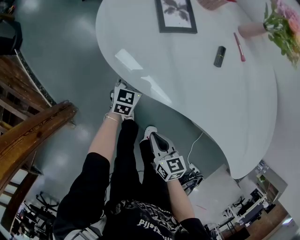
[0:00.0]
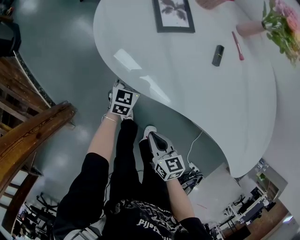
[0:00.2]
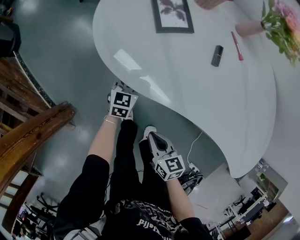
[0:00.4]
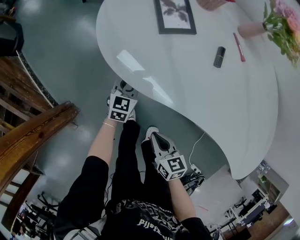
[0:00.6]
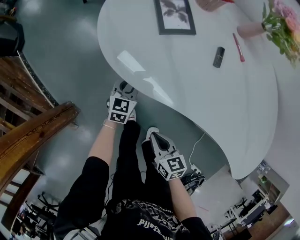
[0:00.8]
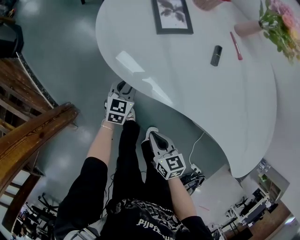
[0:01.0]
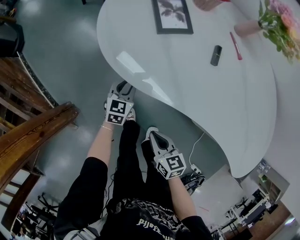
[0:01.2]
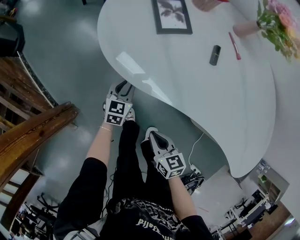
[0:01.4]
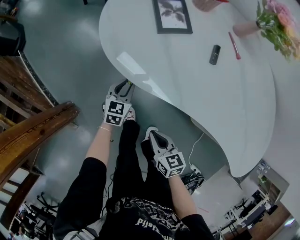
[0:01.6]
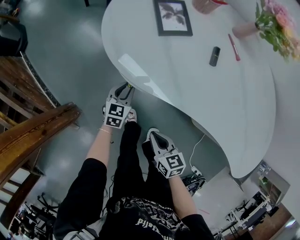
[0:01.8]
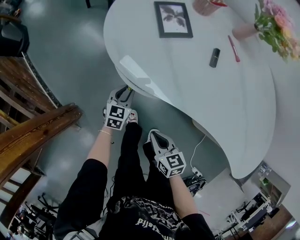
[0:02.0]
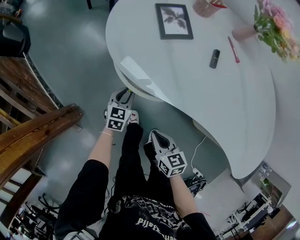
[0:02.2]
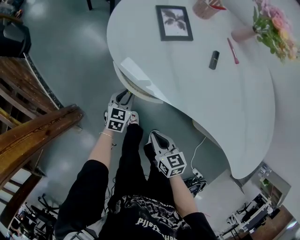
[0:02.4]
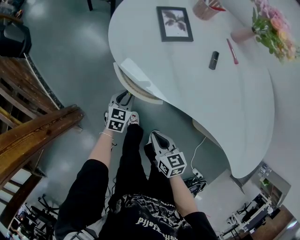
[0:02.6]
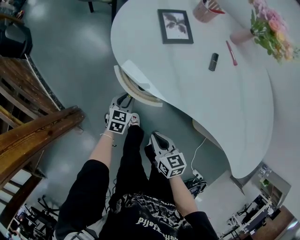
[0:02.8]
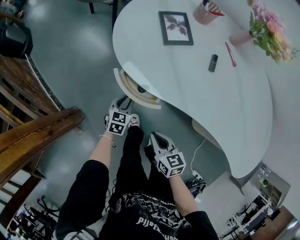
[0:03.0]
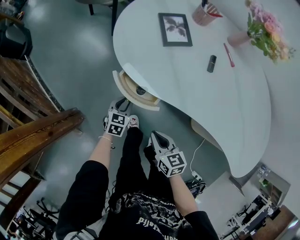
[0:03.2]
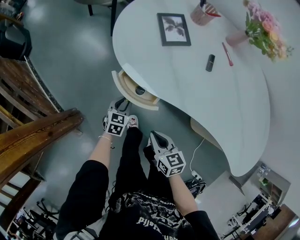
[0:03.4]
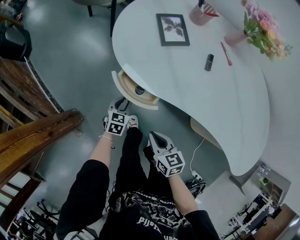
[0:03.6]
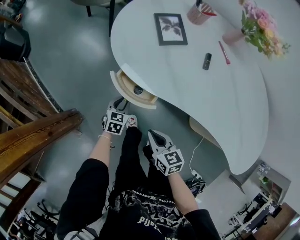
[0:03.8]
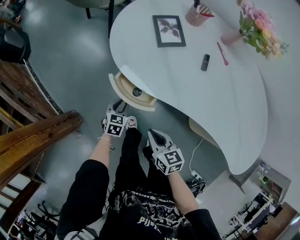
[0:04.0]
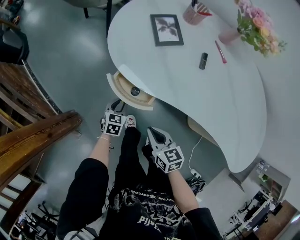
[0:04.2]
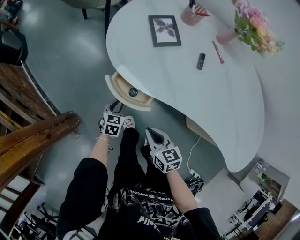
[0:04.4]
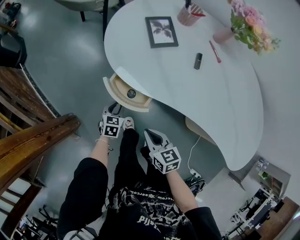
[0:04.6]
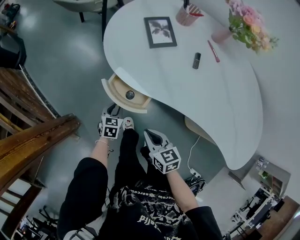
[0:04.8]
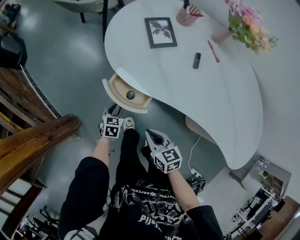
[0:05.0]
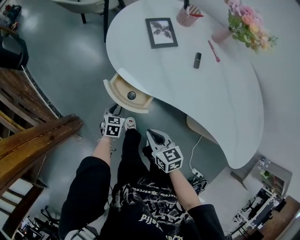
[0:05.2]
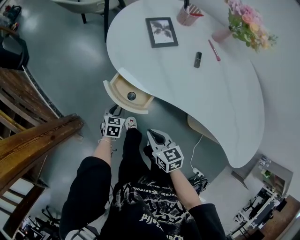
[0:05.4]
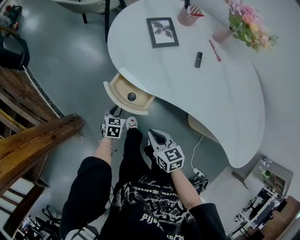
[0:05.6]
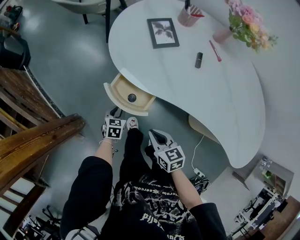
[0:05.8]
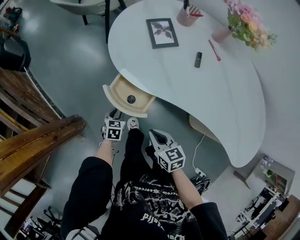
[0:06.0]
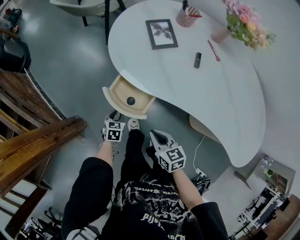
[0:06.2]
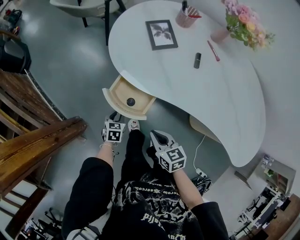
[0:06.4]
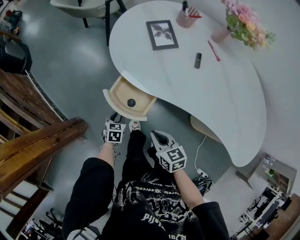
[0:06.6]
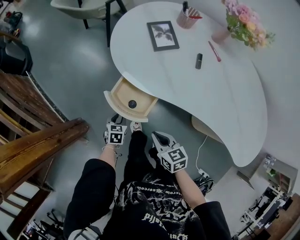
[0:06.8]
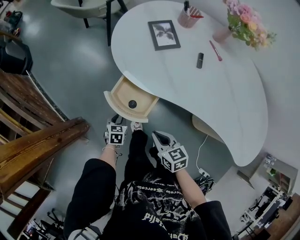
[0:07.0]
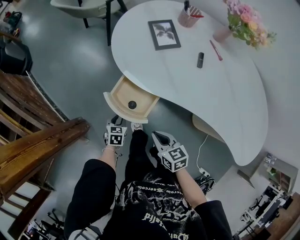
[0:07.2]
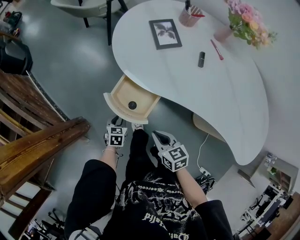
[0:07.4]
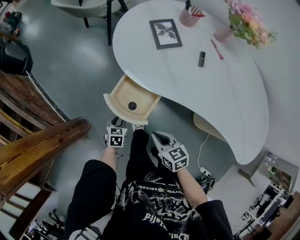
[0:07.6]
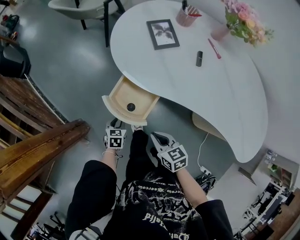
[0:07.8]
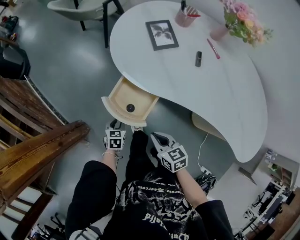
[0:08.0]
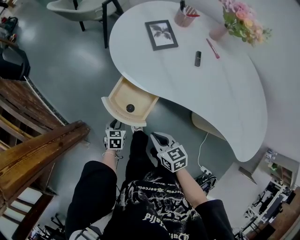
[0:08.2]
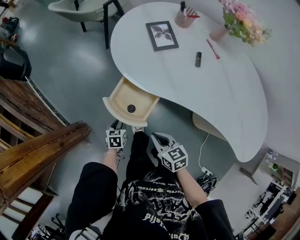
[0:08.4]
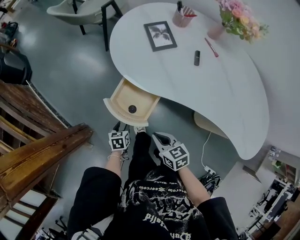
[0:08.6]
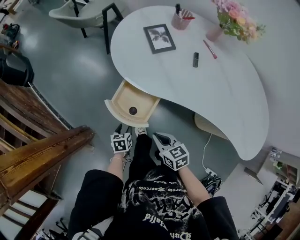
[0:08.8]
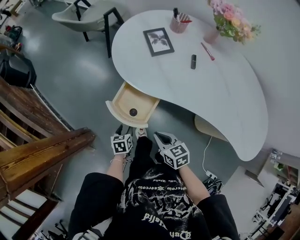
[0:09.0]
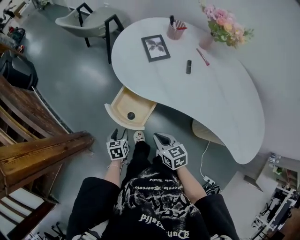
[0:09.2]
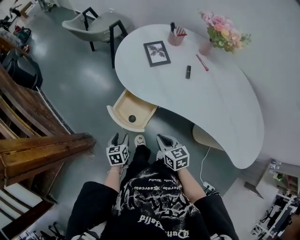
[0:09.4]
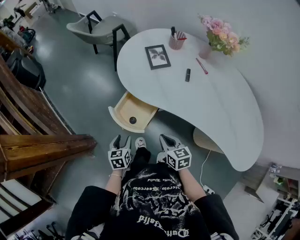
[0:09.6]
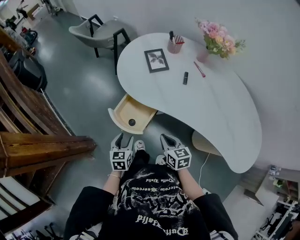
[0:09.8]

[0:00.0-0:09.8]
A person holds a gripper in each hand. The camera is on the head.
0:00.0 to 0:01.4: The left gripper shifts by roughly 5 cm.
0:01.4 to 0:02.8: The left gripper changes place by roughly 5 cm.
0:02.8 to 0:04.2: The grippers stay close to where they were, moving slightly.
0:04.2 to 0:05.6: The grippers stay close to where they were, moving slightly.
0:05.6 to 0:07.0: The grippers stay close to where they were, moving slightly.
0:07.0 to 0:08.4: The grippers stay close to where they were, moving slightly.
0:08.4 to 0:09.8: The left gripper travels upward by some 20 cm, and opens its fingers; the right gripper heads to the right and upward, covering roughly 10 cm.

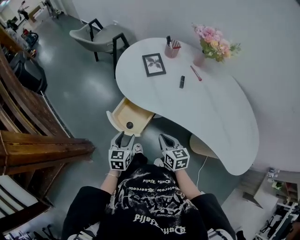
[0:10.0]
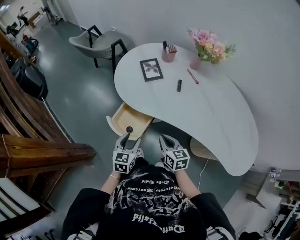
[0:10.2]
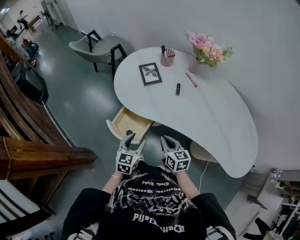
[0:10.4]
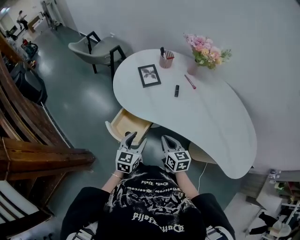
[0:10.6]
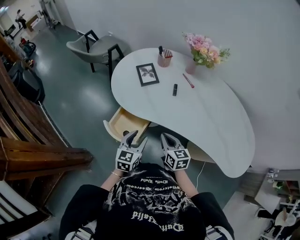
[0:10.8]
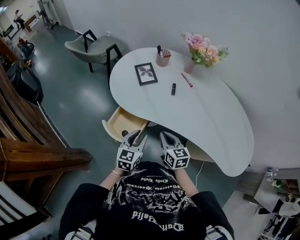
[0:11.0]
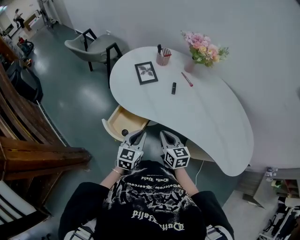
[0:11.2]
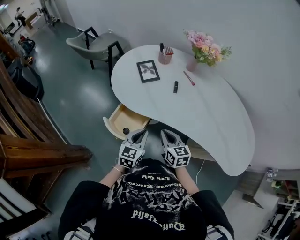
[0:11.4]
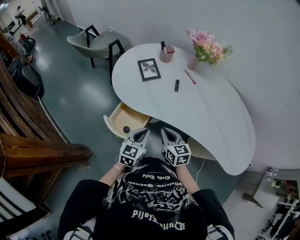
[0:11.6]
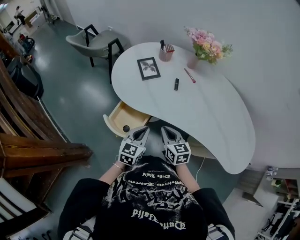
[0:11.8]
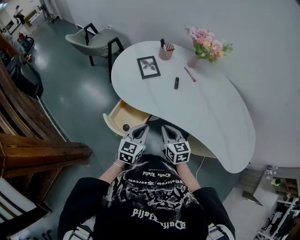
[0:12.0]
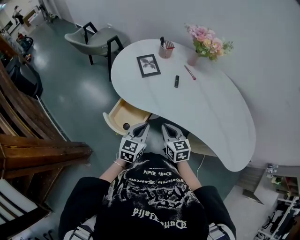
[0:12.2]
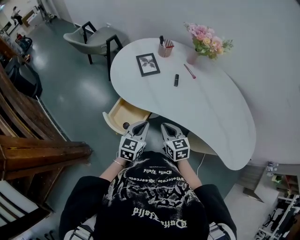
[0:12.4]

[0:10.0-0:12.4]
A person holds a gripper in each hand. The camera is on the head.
0:10.0 to 0:11.2: The right gripper shifts by about 5 cm. Meanwhile the left gripper shifts approximately 10 cm to the right and upward, and closes its fingers.
0:11.2 to 0:12.4: The grippers move only a little.

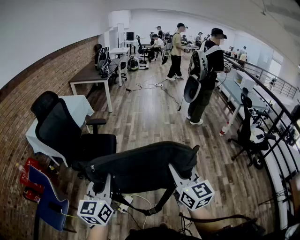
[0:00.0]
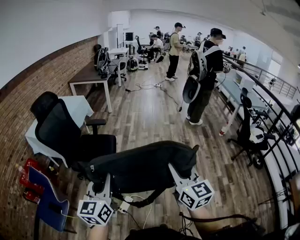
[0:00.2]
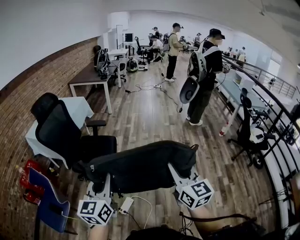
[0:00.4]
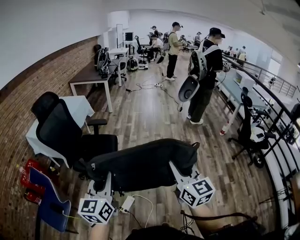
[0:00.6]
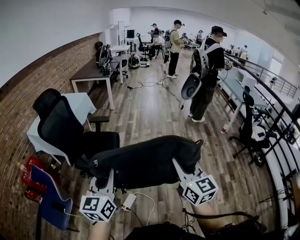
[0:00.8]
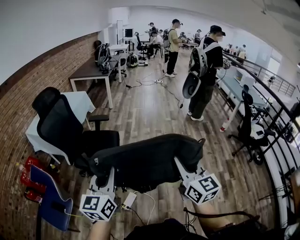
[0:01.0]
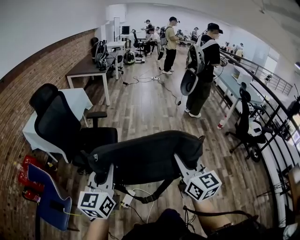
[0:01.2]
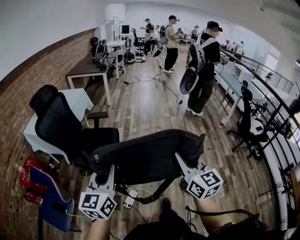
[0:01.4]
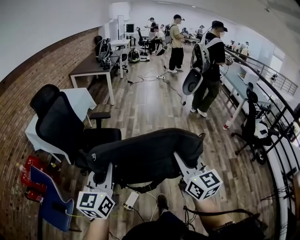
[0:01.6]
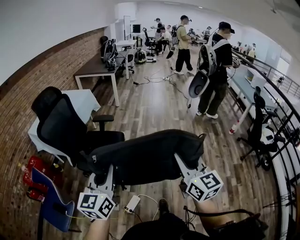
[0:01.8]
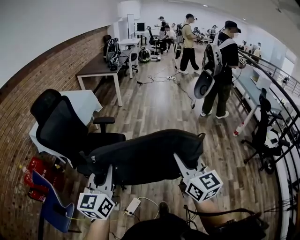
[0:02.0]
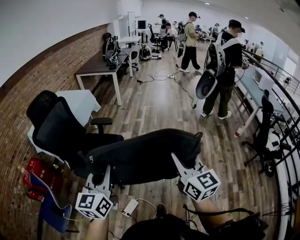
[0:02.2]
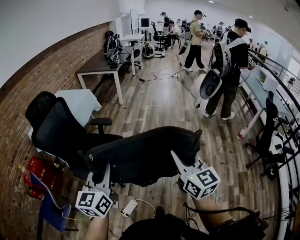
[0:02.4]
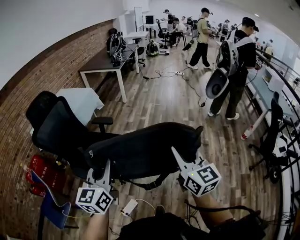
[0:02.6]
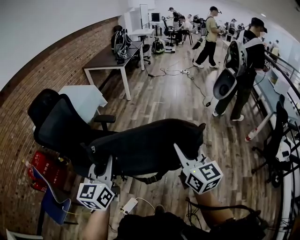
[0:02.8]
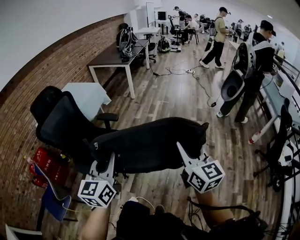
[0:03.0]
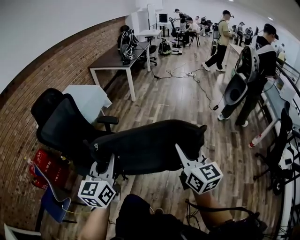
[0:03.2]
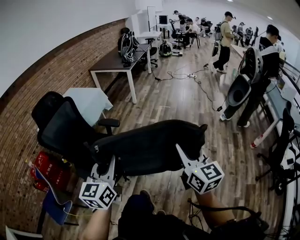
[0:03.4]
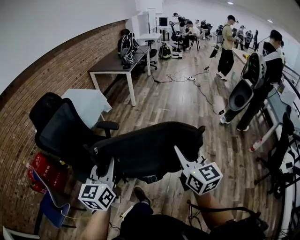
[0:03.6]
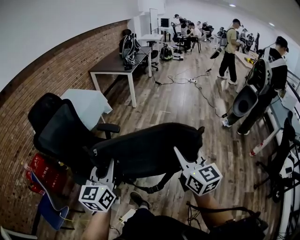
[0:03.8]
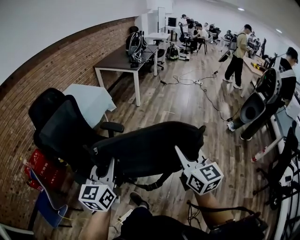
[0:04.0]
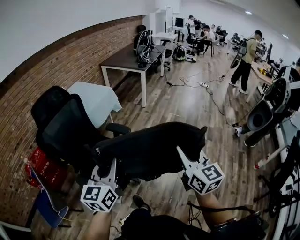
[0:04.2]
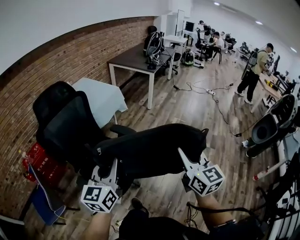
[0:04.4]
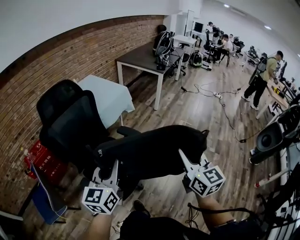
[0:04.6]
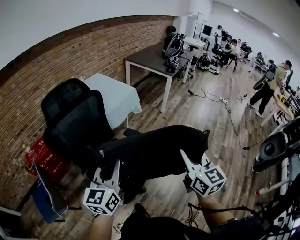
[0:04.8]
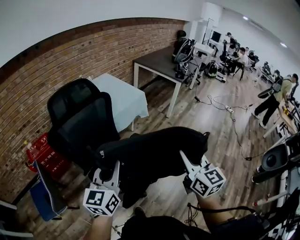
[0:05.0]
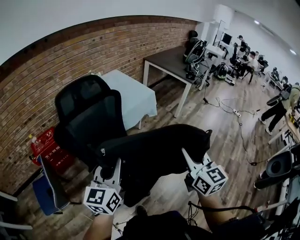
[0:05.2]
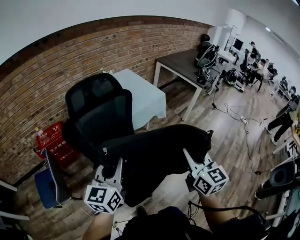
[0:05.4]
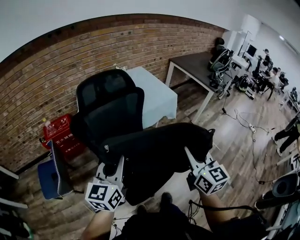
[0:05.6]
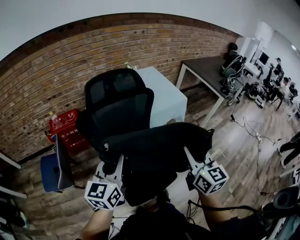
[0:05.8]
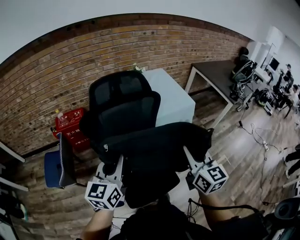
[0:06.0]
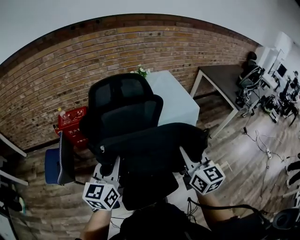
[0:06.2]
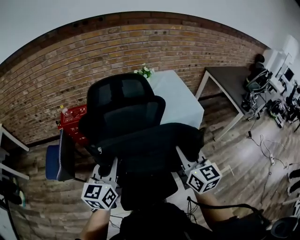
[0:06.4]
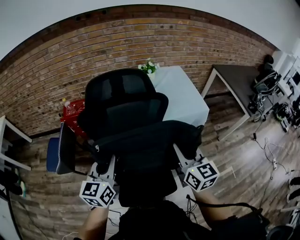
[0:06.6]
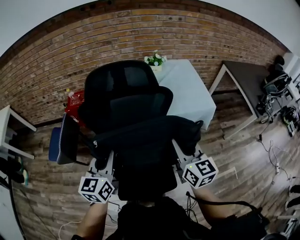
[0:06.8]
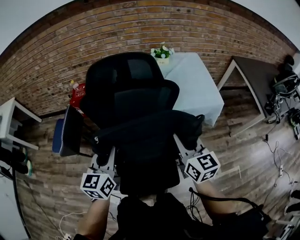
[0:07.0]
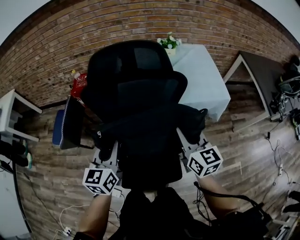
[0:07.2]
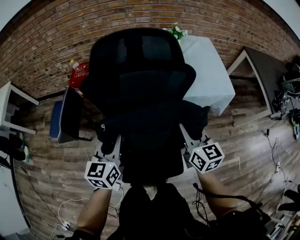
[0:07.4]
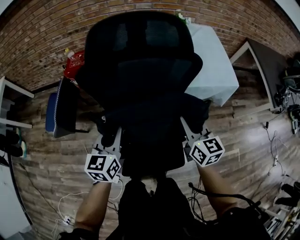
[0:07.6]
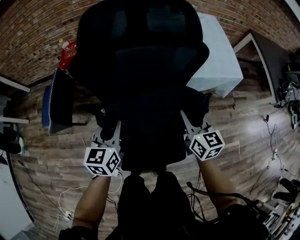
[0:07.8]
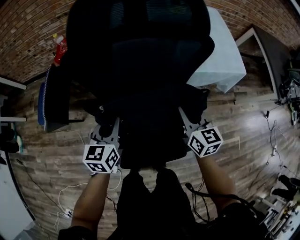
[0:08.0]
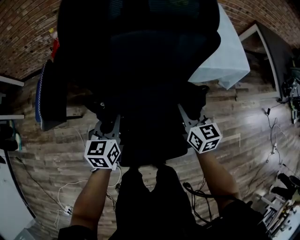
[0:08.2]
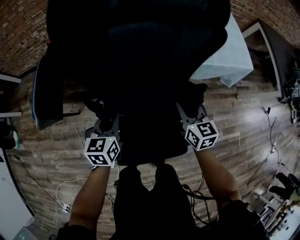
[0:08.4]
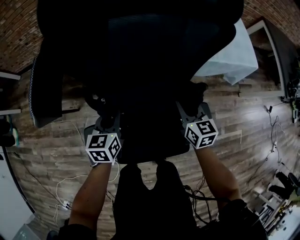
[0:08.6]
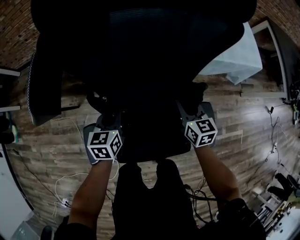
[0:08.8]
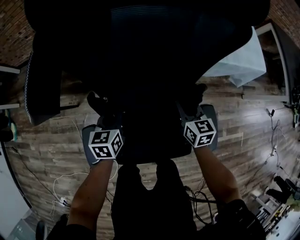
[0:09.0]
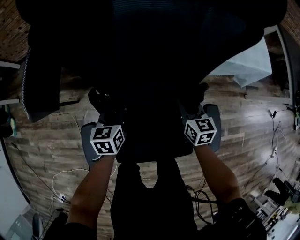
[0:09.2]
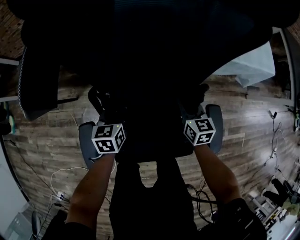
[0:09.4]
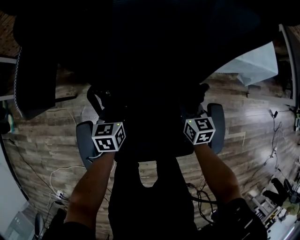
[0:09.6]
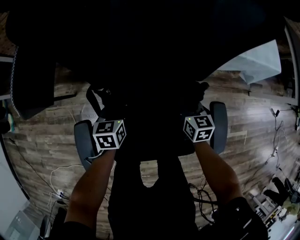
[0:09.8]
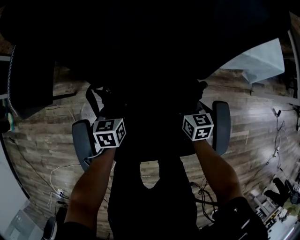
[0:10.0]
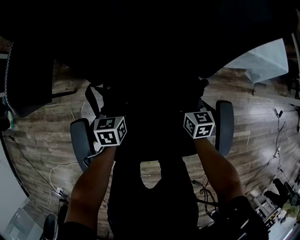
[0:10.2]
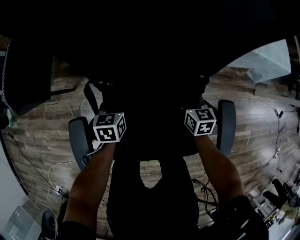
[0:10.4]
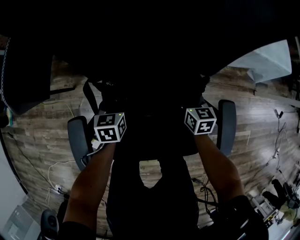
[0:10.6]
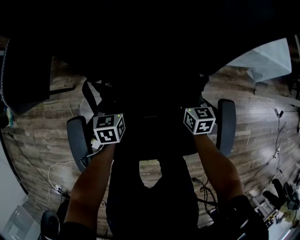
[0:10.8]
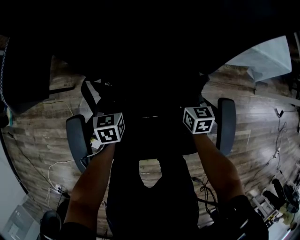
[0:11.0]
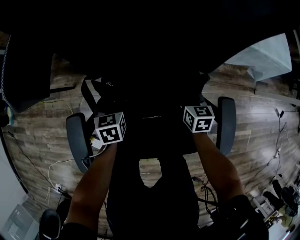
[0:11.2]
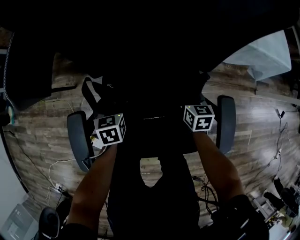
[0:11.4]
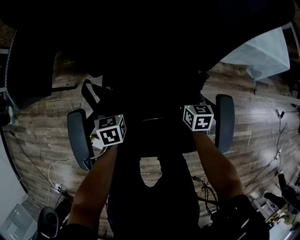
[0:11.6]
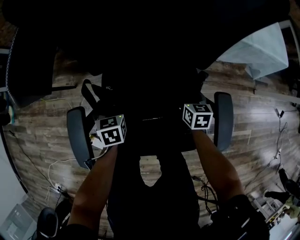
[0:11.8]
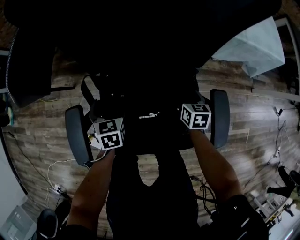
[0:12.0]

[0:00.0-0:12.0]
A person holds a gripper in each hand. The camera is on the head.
0:00.0 to 0:01.6: Both grippers move forward, some 5 cm.
0:01.6 to 0:03.0: Both grippers move forward and to the right, roughly 25 cm.
0:03.0 to 0:04.4: Both grippers travel together forward and to the left, about 25 cm.
0:04.4 to 0:06.0: The left gripper changes place by roughly 25 cm, and changes its angle by about 30 degrees. The right gripper shifts by roughly 40 cm, and turns by some 40 degrees.
0:06.0 to 0:07.6: The two grippers go about 20 cm downward and forward. The right gripper changes its angle by some 20 degrees, while the left gripper changes its angle by some 20 degrees.
0:07.6 to 0:09.0: The two grippers go about 25 cm downward. The left gripper turns by roughly 20 degrees.
0:09.0 to 0:10.4: The grippers both shift downward by roughly 15 cm.
0:10.4 to 0:12.0: The right gripper opens. The left gripper travels backward by some 5 cm, and opens.
